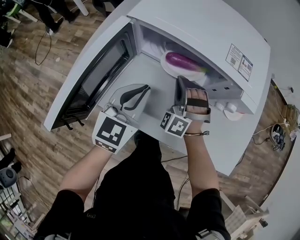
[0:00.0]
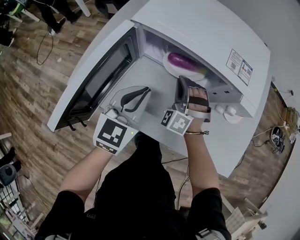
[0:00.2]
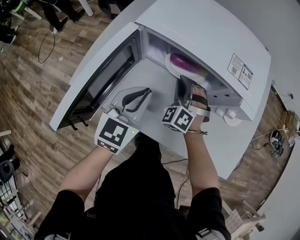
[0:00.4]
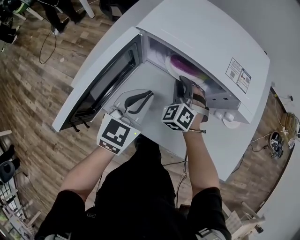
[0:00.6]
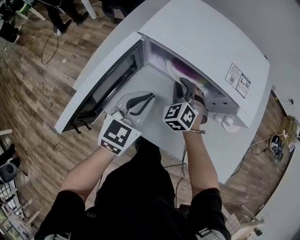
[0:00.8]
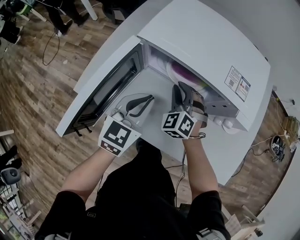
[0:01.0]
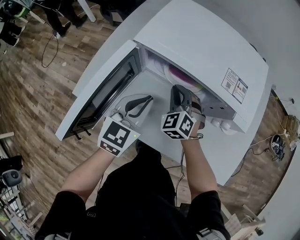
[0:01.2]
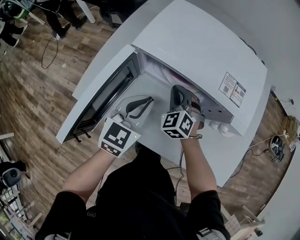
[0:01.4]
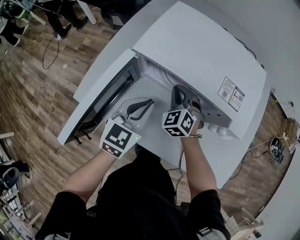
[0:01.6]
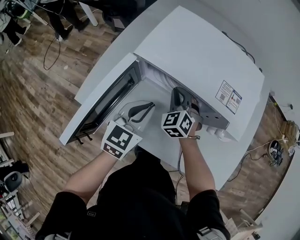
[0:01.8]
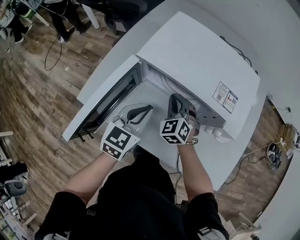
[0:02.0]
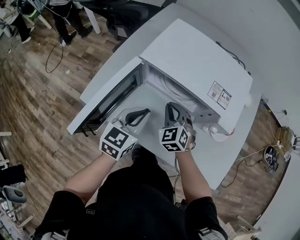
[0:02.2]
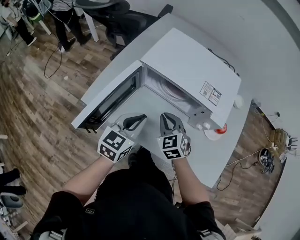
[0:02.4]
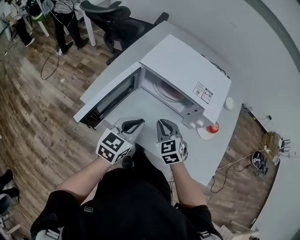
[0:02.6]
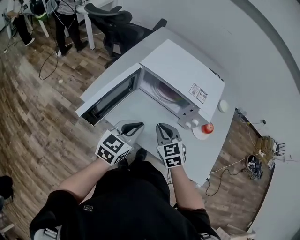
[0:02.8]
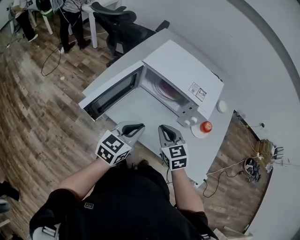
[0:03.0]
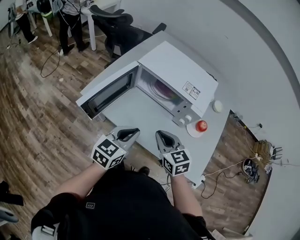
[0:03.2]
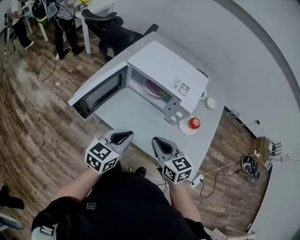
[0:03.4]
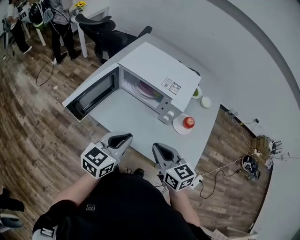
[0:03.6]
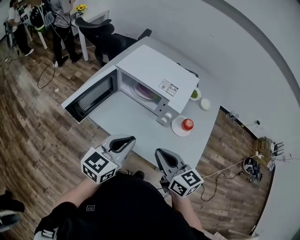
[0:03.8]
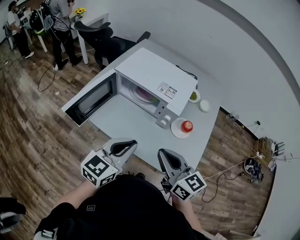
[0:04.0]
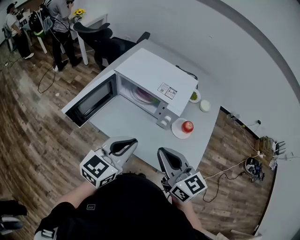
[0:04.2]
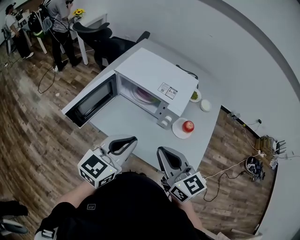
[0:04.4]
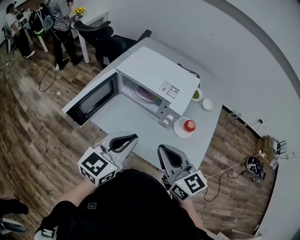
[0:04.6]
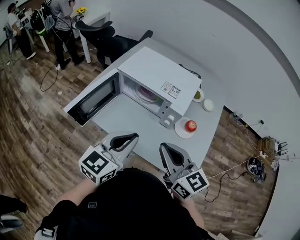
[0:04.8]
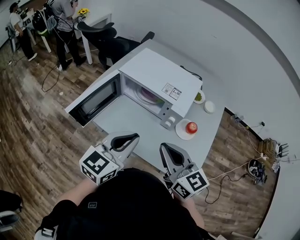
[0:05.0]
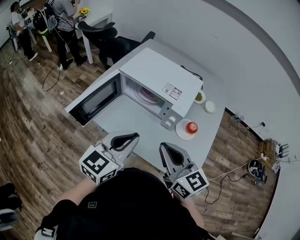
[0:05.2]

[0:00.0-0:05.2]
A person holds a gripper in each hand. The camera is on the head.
0:00.0 to 0:01.8: The right gripper shifts roughly 5 cm forward, and swivels about 40 degrees.
0:01.8 to 0:03.4: The grippers both shift backward and upward by roughly 30 cm. The right gripper swivels about 50 degrees.
0:03.4 to 0:05.2: Both grippers travel together upward and to the right, some 10 cm.

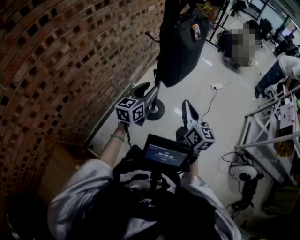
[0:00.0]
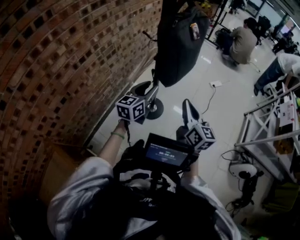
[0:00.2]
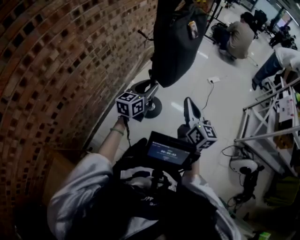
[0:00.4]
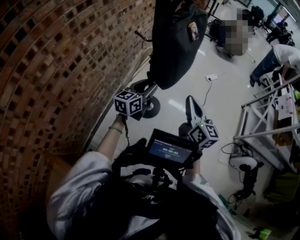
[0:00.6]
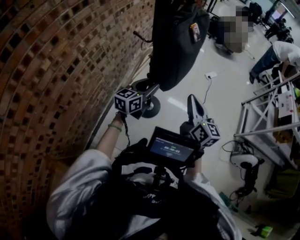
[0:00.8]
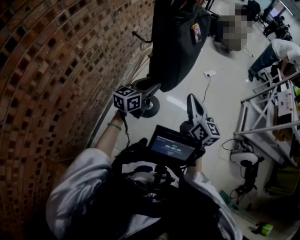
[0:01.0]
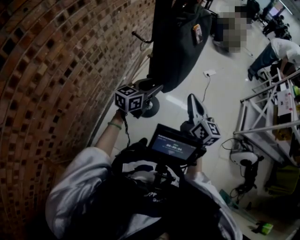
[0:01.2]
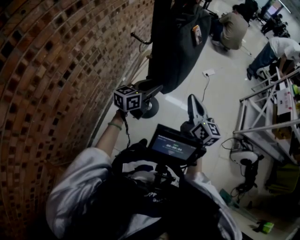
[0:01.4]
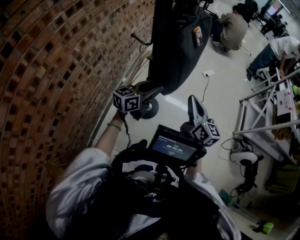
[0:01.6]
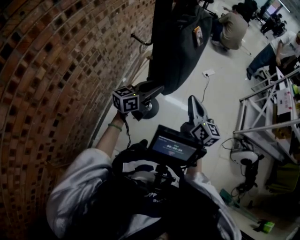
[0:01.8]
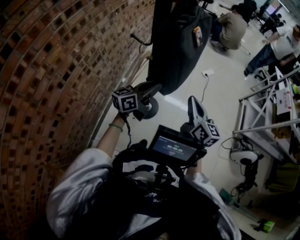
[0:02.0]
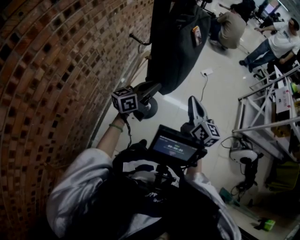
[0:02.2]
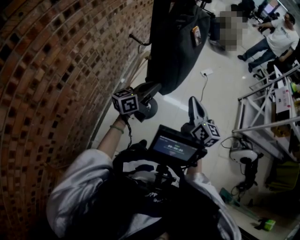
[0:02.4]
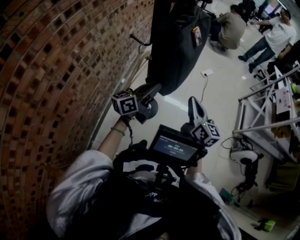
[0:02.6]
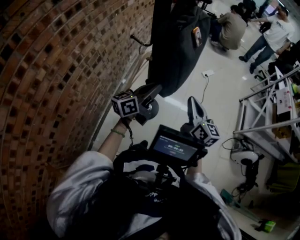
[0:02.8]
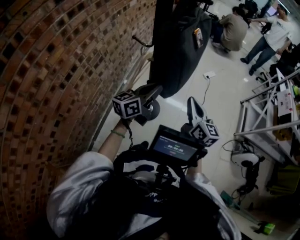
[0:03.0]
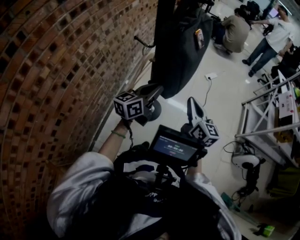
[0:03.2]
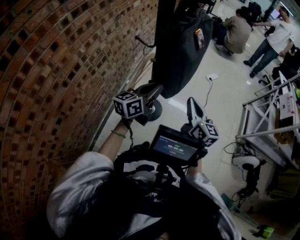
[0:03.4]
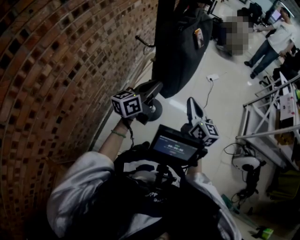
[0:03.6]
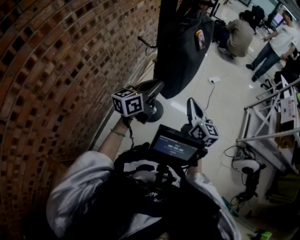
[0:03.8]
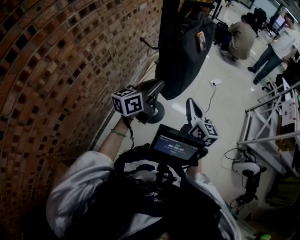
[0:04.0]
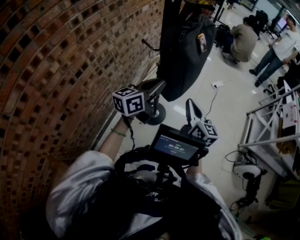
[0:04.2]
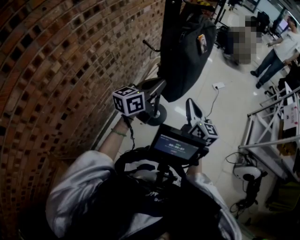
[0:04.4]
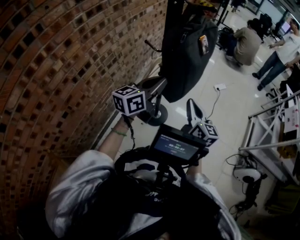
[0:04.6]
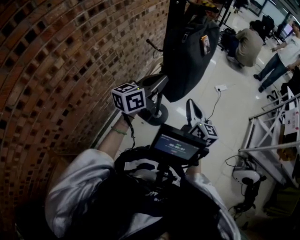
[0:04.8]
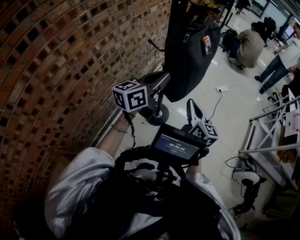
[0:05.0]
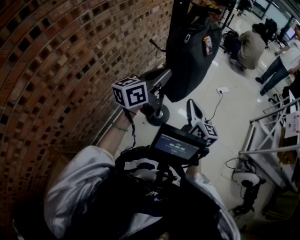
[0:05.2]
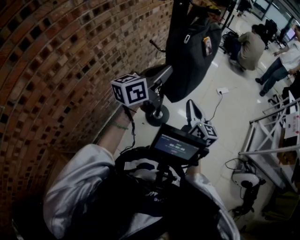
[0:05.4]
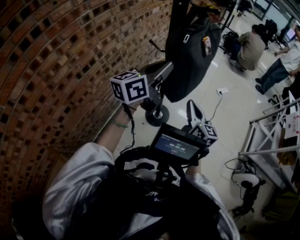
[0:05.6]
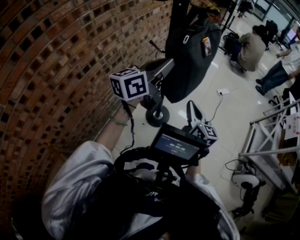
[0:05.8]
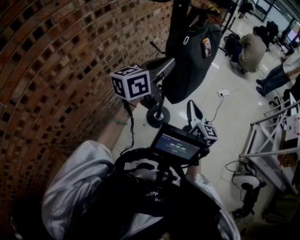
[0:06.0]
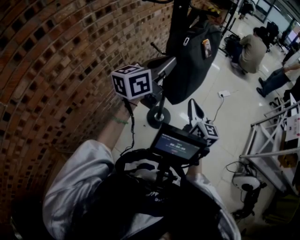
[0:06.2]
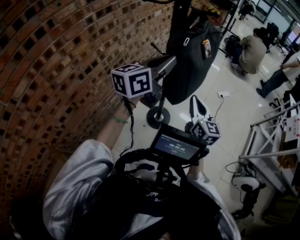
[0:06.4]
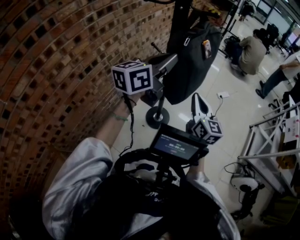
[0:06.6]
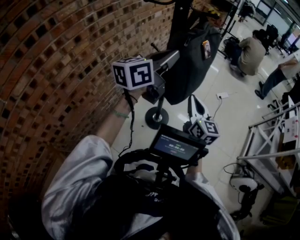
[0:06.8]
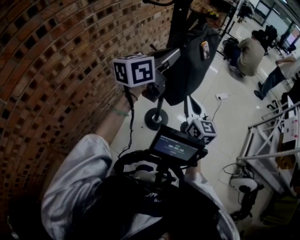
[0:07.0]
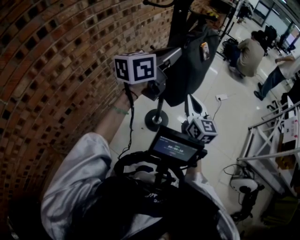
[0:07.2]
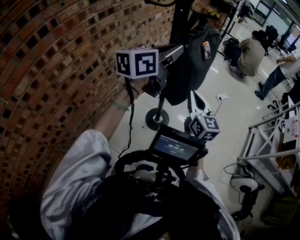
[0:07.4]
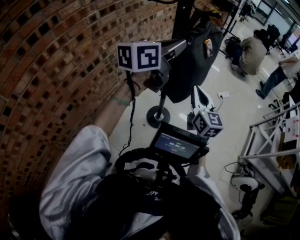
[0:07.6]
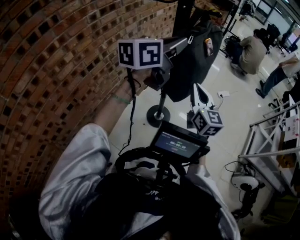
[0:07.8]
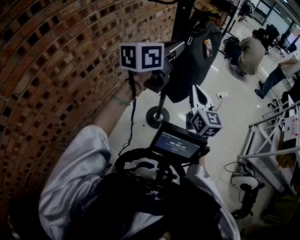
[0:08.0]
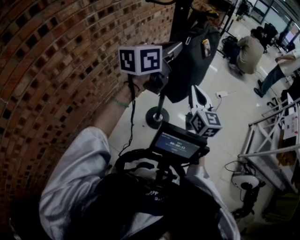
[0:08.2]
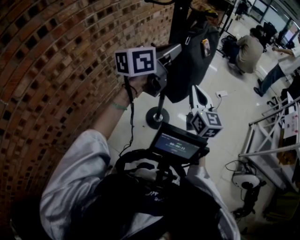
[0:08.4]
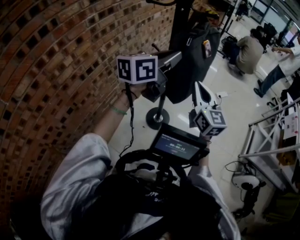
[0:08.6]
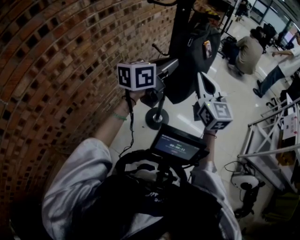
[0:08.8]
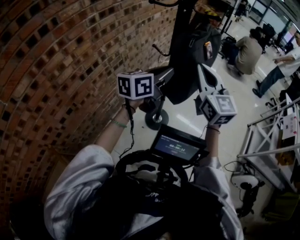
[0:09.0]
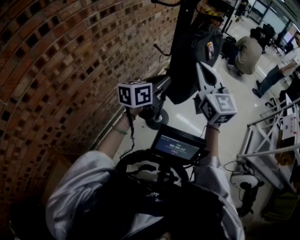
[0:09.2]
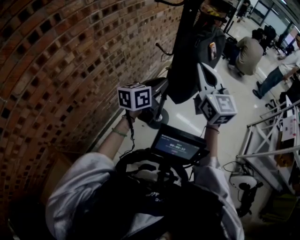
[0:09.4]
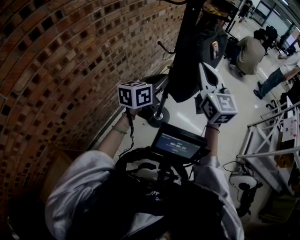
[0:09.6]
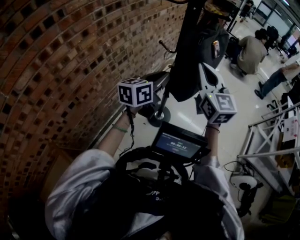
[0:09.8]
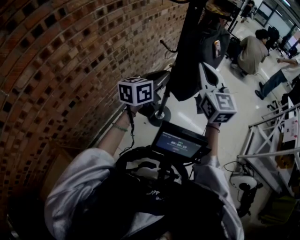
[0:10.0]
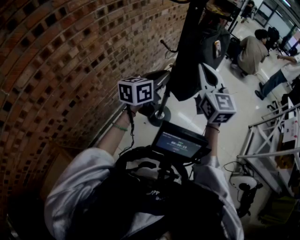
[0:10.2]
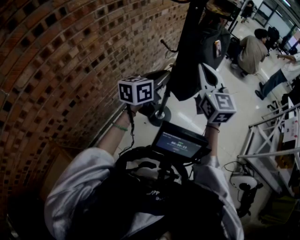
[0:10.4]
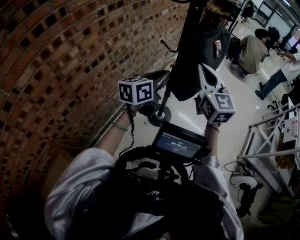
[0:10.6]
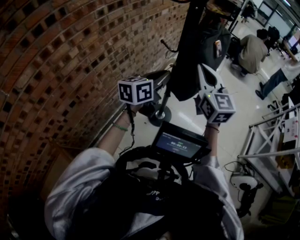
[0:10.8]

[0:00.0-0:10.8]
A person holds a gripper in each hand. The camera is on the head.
0:00.0 to 0:01.6: Both grippers move forward, about 10 cm. The left gripper changes its angle by about 30 degrees.
0:01.6 to 0:03.0: The left gripper closes its fingers.
0:03.0 to 0:04.6: The left gripper travels upward by some 5 cm.
0:04.6 to 0:06.2: The left gripper heads upward, covering roughly 10 cm.
0:06.2 to 0:07.8: The grippers both shift upward by some 5 cm.
0:07.8 to 0:09.2: The left gripper is displaced downward by roughly 15 cm, while the right gripper is displaced upward and to the left by roughly 15 cm.
0:09.2 to 0:10.8: The right gripper goes roughly 5 cm downward.

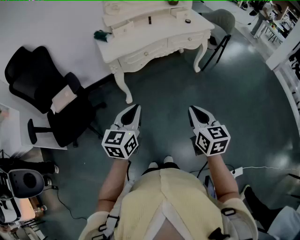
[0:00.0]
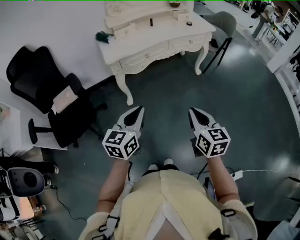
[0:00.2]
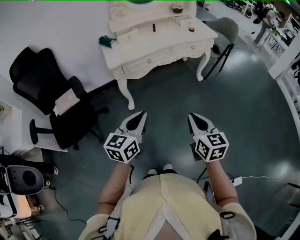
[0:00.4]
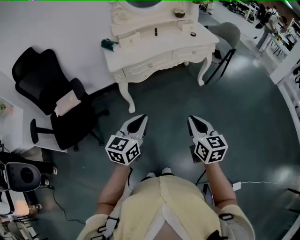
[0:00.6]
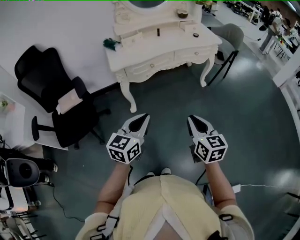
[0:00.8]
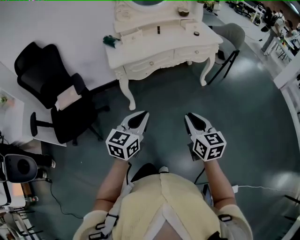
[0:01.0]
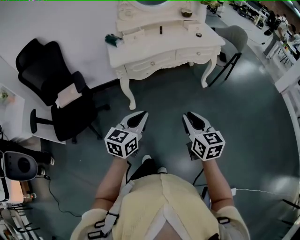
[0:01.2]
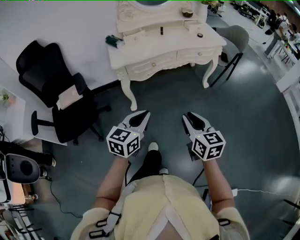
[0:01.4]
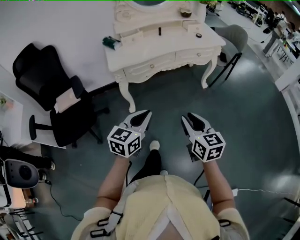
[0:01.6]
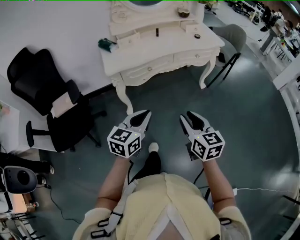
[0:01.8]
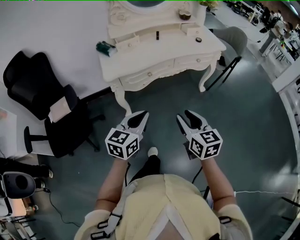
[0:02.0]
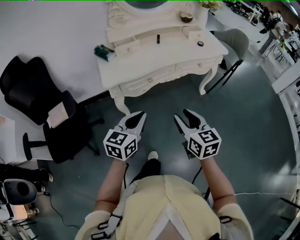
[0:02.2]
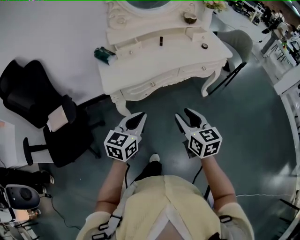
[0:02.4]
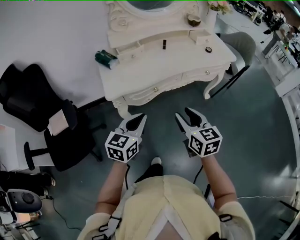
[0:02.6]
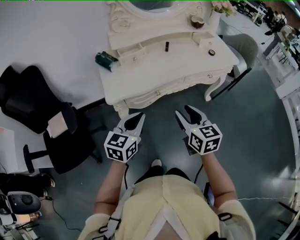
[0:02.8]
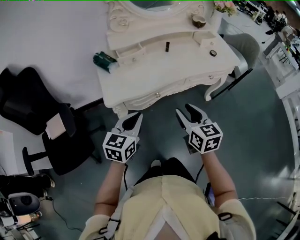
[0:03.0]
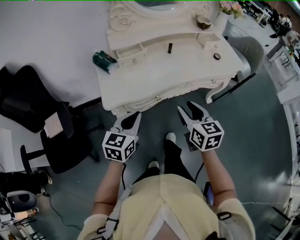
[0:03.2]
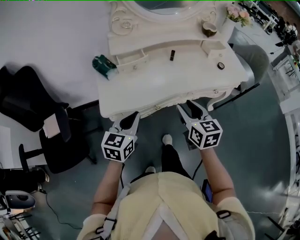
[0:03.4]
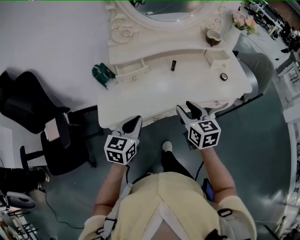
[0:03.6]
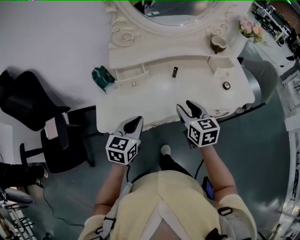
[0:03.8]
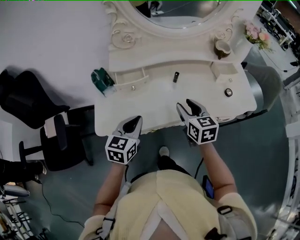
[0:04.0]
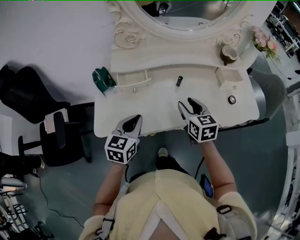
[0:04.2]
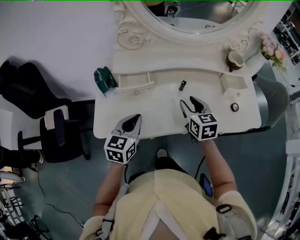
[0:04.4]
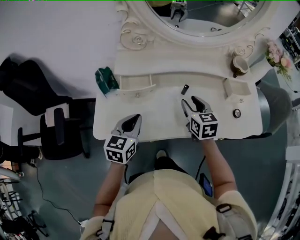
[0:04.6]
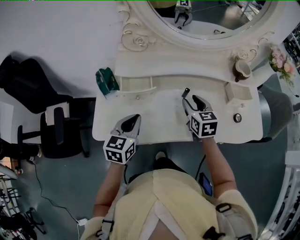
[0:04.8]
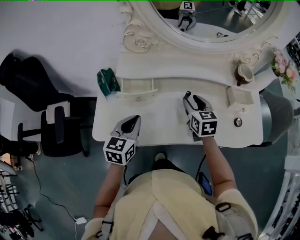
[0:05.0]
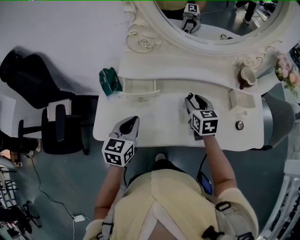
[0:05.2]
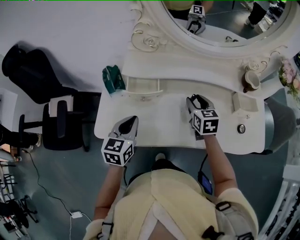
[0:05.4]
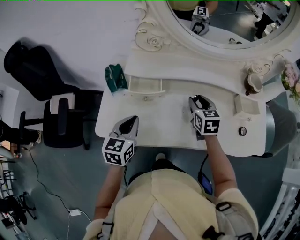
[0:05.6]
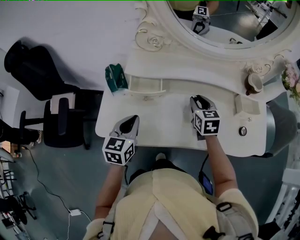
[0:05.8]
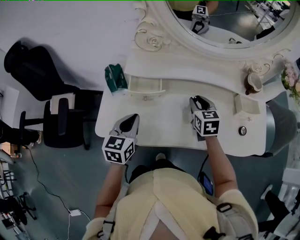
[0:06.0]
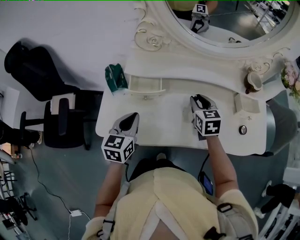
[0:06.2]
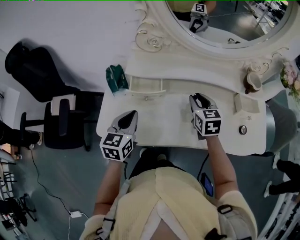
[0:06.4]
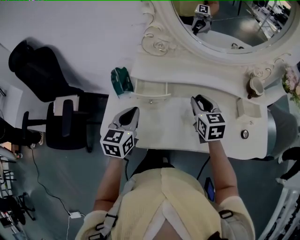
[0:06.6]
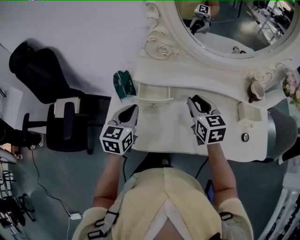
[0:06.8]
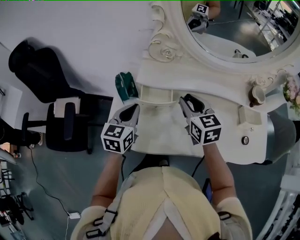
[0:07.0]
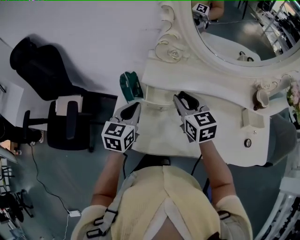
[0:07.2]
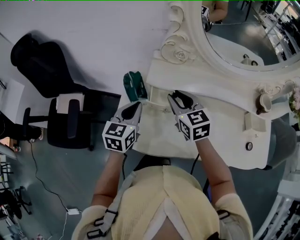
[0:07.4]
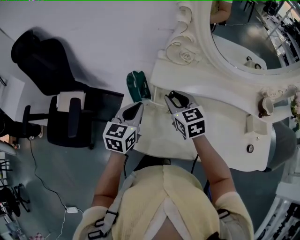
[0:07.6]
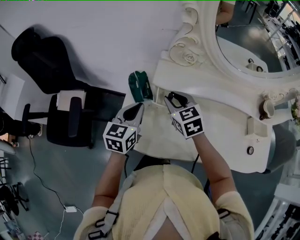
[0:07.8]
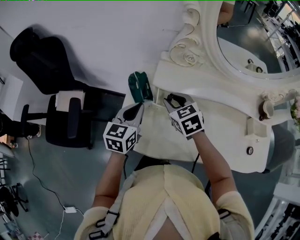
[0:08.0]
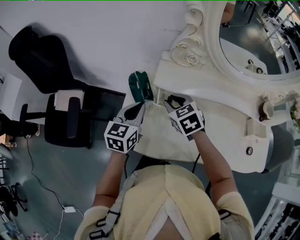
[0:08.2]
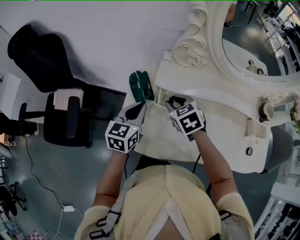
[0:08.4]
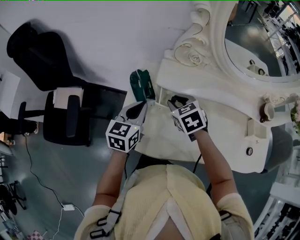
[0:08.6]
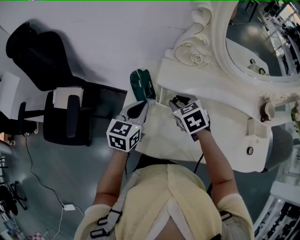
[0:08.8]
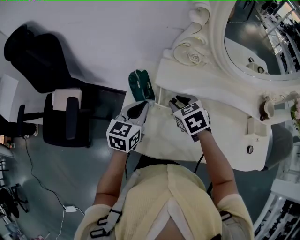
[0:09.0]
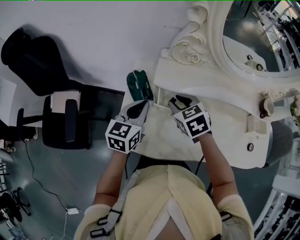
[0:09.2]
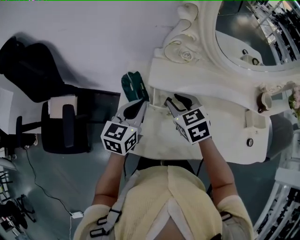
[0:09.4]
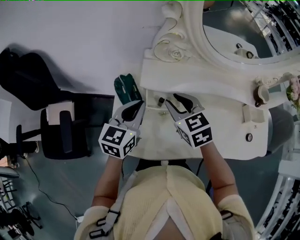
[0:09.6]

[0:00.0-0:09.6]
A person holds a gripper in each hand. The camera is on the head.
0:00.0 to 0:01.6: The right gripper moves forward, some 5 cm, and opens up, while the left gripper goes roughly 10 cm to the right and forward.
0:01.6 to 0:03.2: Both grippers travel together forward, approximately 35 cm.
0:03.2 to 0:04.8: The right gripper is displaced forward by approximately 35 cm, and swivels roughly 20 degrees; the left gripper moves forward, about 25 cm, and turns by about 20 degrees.
0:04.8 to 0:06.4: The grippers stay close to where they were, moving slightly.
0:06.4 to 0:08.0: The left gripper travels to the left and forward by roughly 10 cm; the right gripper shifts some 25 cm to the left, and rotates some 30 degrees.
0:08.0 to 0:09.6: The left gripper moves approximately 5 cm; the right gripper shifts by about 5 cm.
